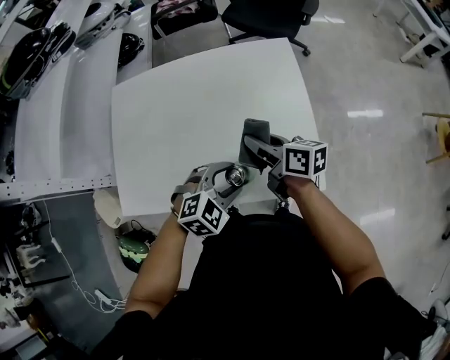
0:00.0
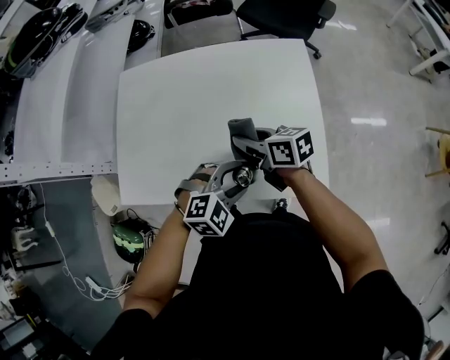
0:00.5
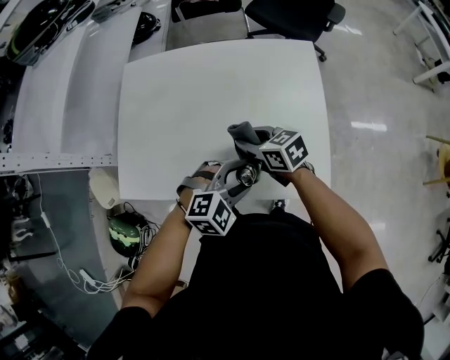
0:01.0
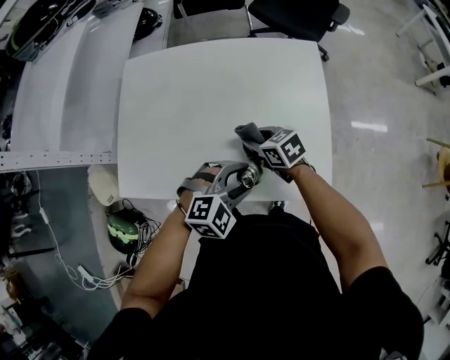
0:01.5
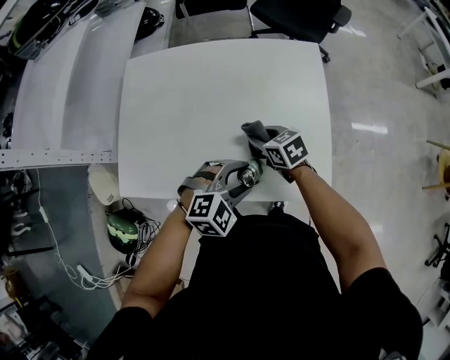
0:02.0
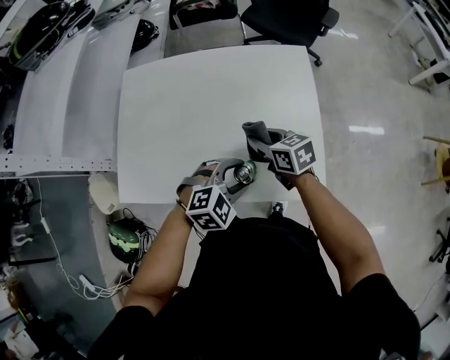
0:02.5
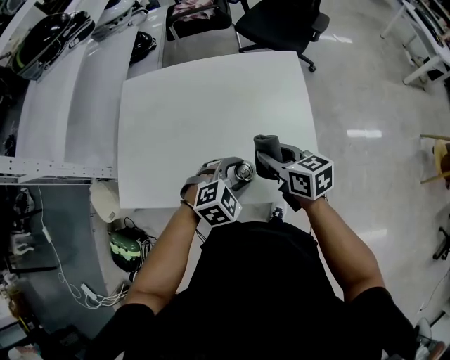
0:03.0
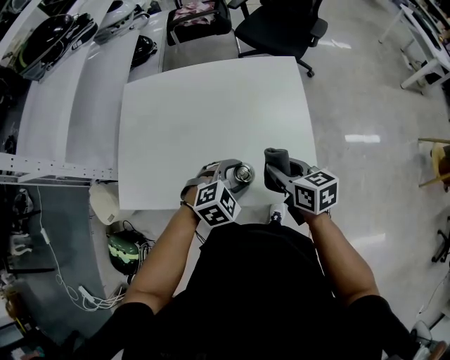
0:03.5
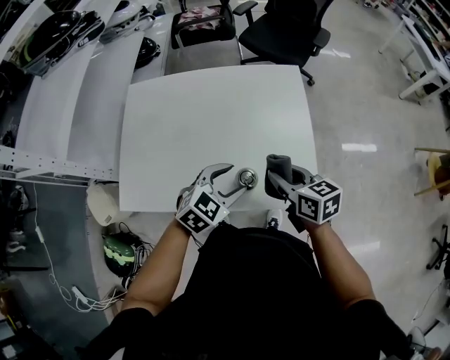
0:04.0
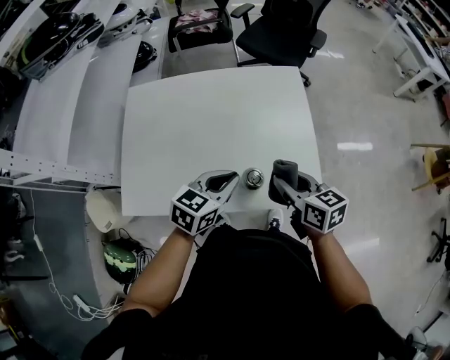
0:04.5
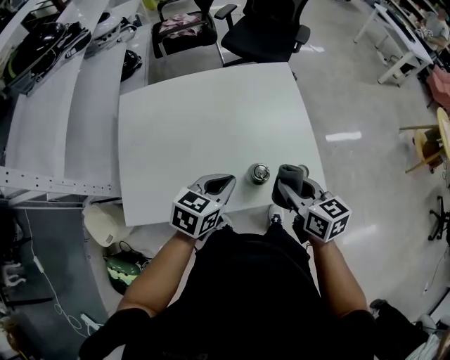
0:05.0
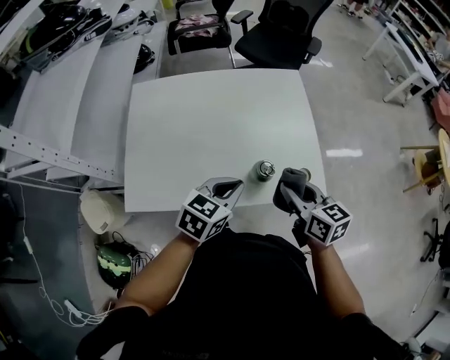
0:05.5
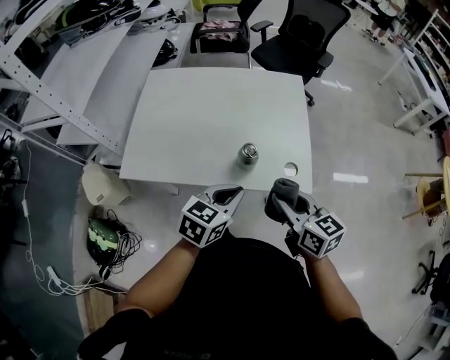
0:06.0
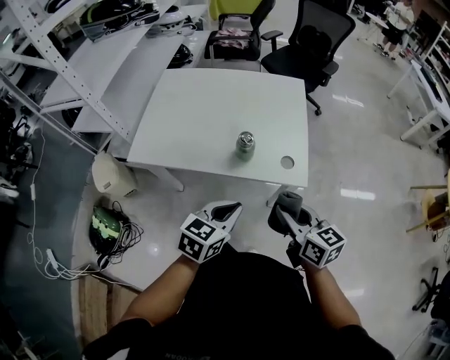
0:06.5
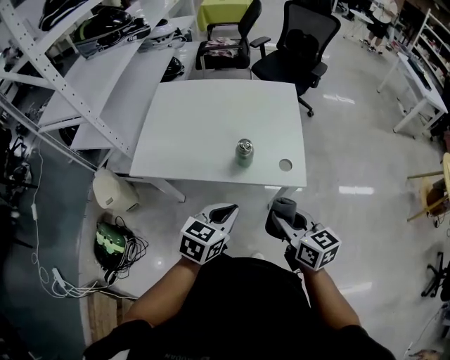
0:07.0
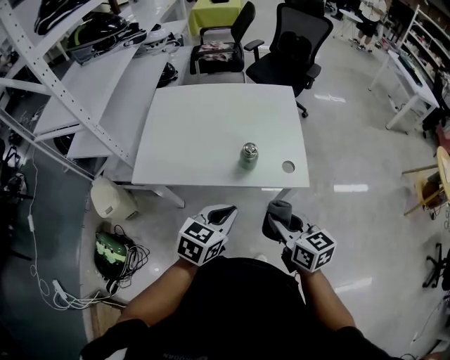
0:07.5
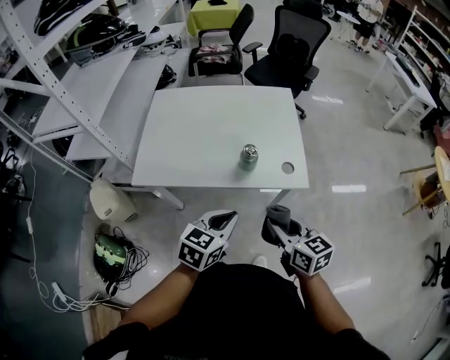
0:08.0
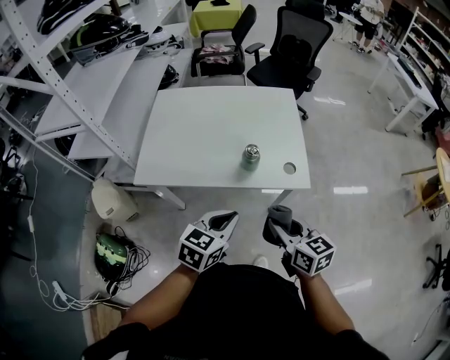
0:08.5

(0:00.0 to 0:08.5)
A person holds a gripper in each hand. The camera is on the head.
0:00.0 - 0:02.0: The right gripper is displaced downward and to the left by about 10 cm, and swivels some 40 degrees.
0:02.0 - 0:04.0: The right gripper shifts some 20 cm upward, to the right and backward, and turns by roughly 20 degrees, while the left gripper turns by some 20 degrees.
0:04.0 - 0:06.5: Both grippers move backward, roughly 25 cm. The left gripper rotates some 30 degrees, and closes up.
0:06.5 - 0:08.5: Both grippers move to the left, roughly 5 cm.

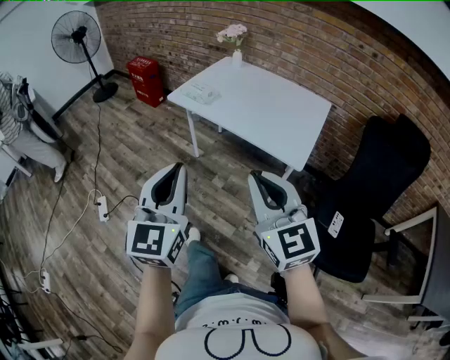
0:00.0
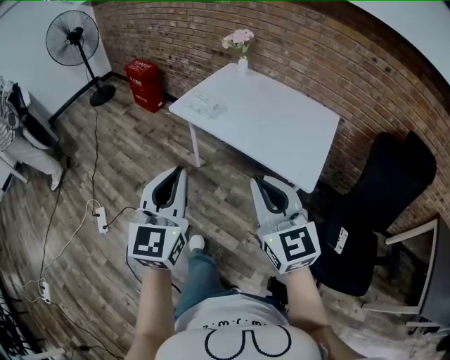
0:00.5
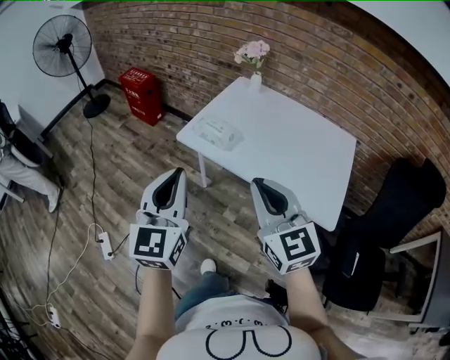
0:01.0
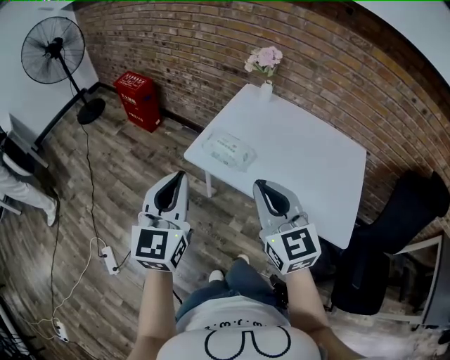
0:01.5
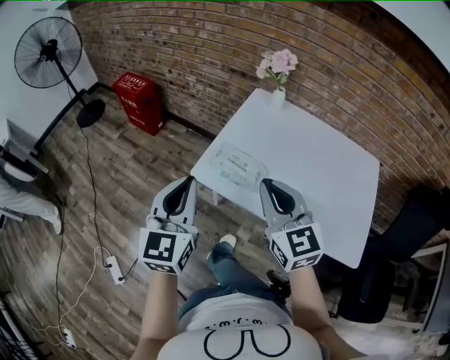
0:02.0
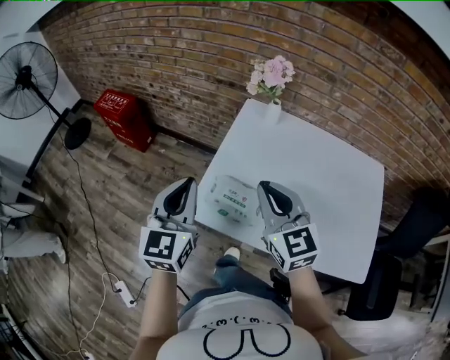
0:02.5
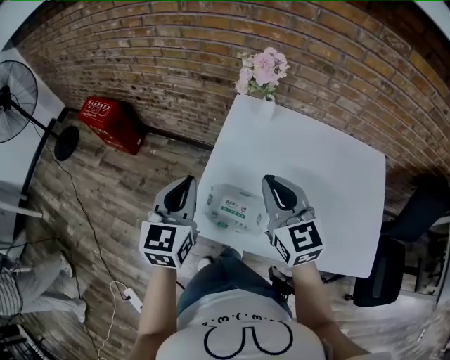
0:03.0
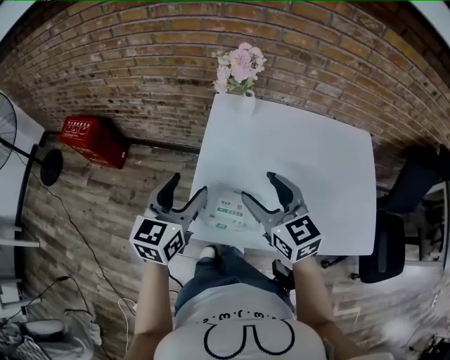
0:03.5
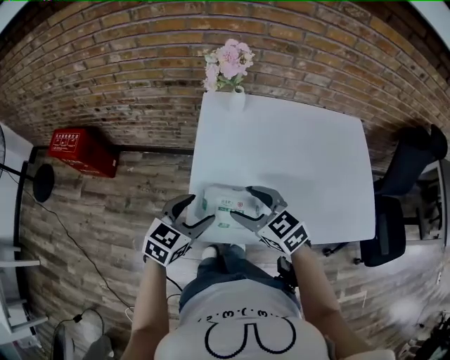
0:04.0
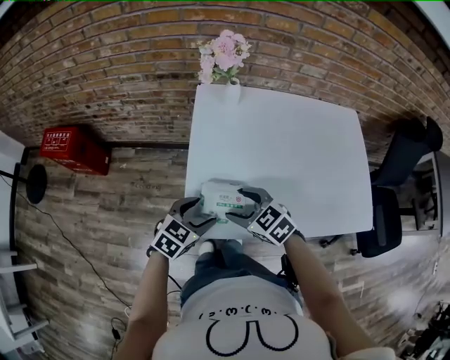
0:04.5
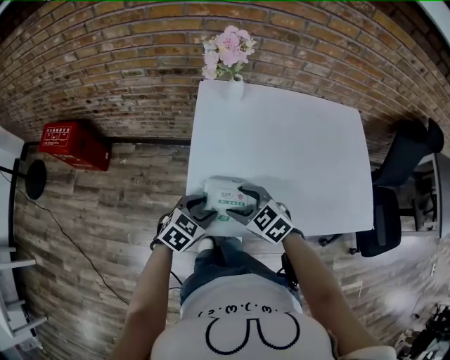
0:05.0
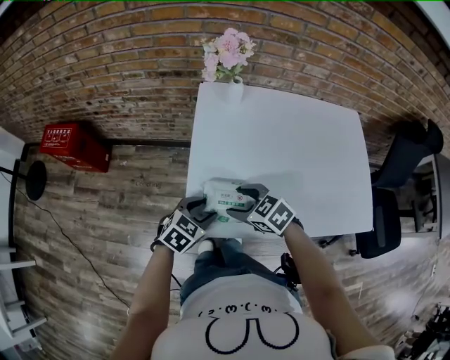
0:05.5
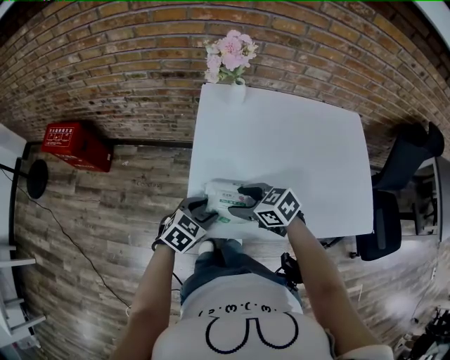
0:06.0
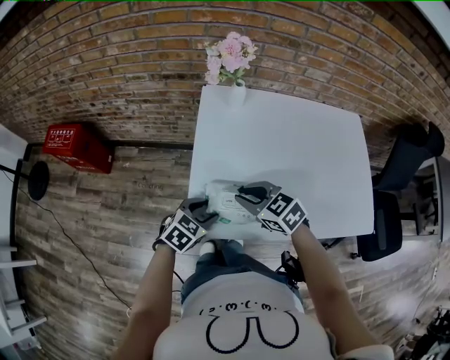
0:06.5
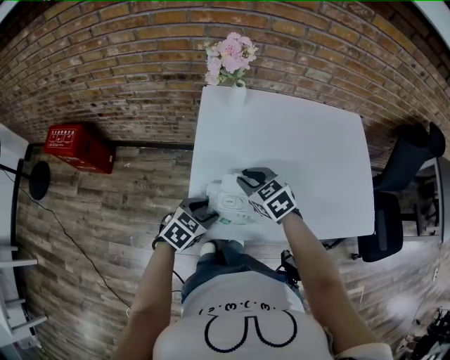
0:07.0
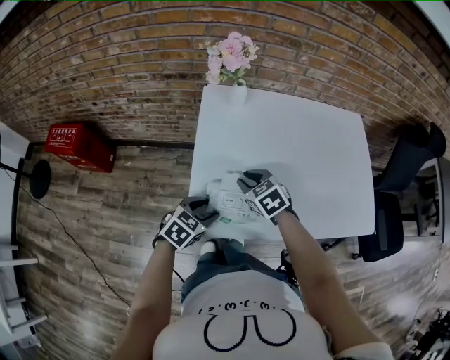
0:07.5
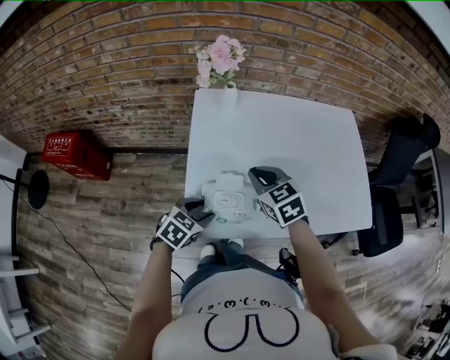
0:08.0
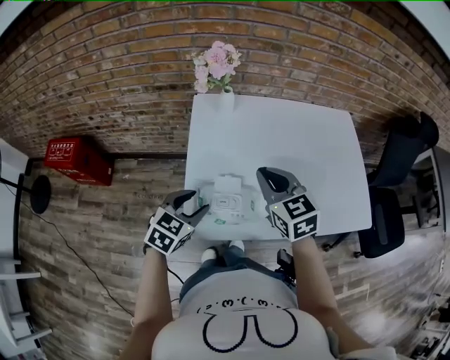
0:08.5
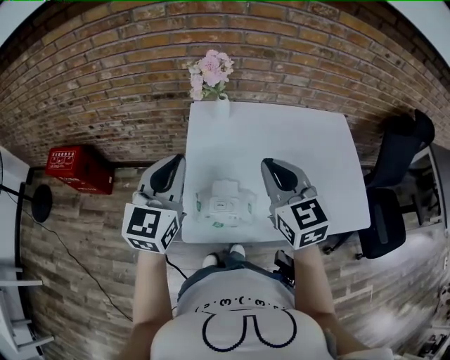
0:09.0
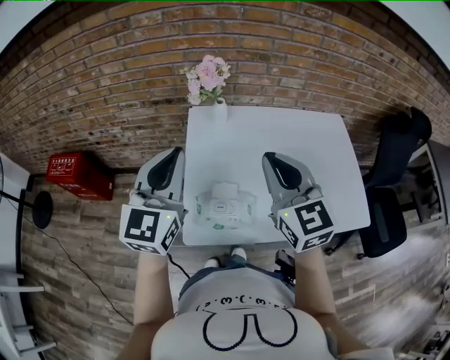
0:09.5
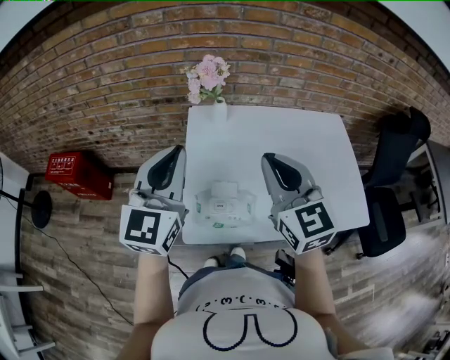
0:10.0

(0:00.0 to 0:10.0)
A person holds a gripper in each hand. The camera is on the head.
0:00.0 - 0:02.0: Both grippers are carried forward, about 60 cm.
0:02.0 - 0:04.0: The left gripper changes place by roughly 25 cm, rotates some 60 degrees, and opens, while the right gripper shifts by approximately 25 cm, swivels about 30 degrees, and opens.
0:04.0 - 0:06.0: Both grippers move downward, about 10 cm. The right gripper changes its angle by approximately 20 degrees.
0:06.0 - 0:08.0: The right gripper moves forward, upward and to the right, about 10 cm, rotates some 30 degrees, and closes up.
0:08.0 - 0:10.0: The left gripper heads upward, covering some 35 cm, tips its fingers upward by approximately 50 degrees, and closes; the right gripper goes some 20 cm upward, and angles its fingers upward, by roughly 30 degrees.

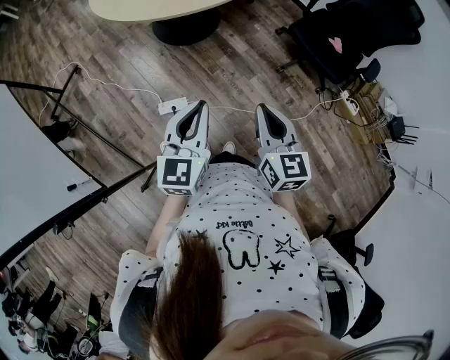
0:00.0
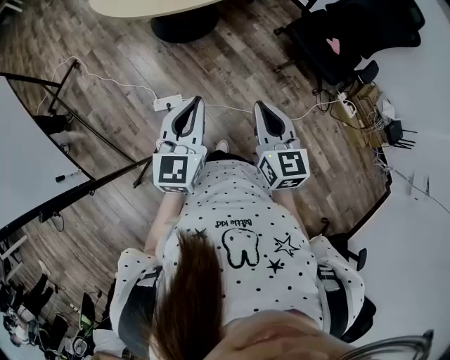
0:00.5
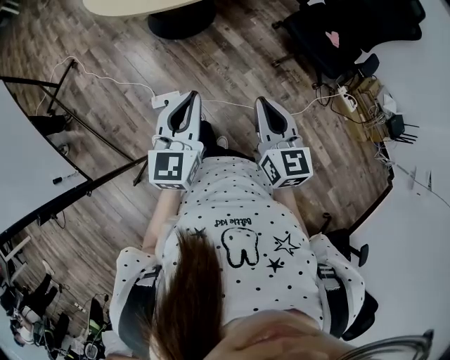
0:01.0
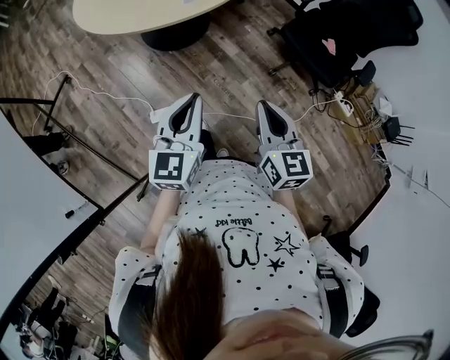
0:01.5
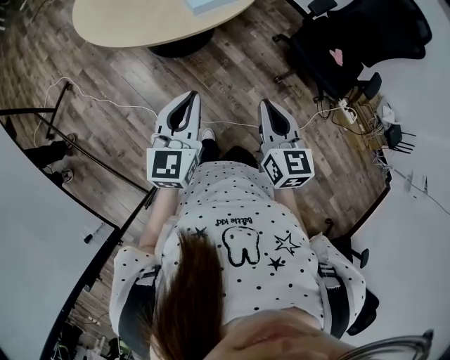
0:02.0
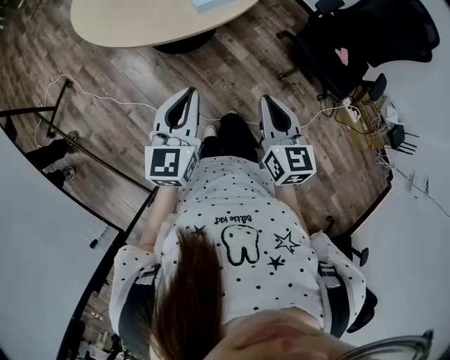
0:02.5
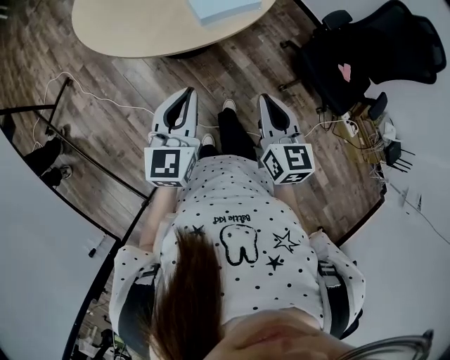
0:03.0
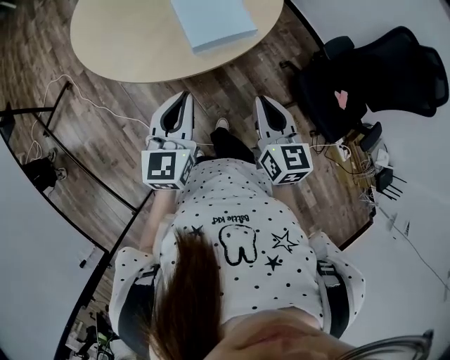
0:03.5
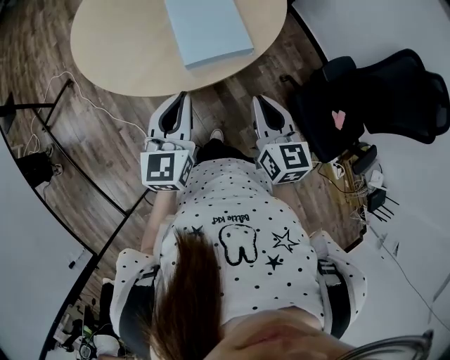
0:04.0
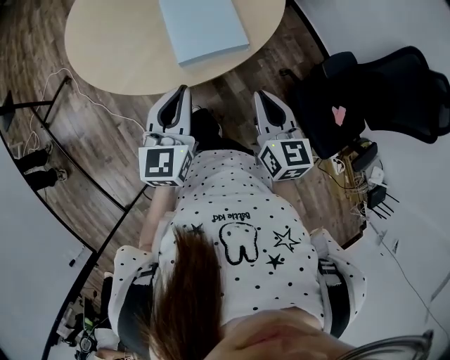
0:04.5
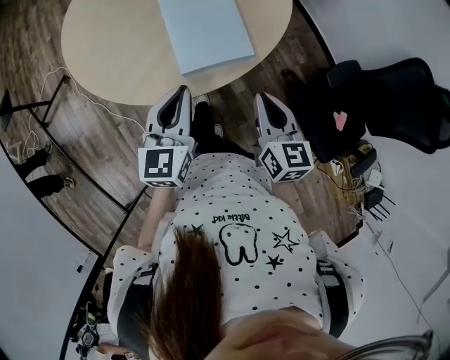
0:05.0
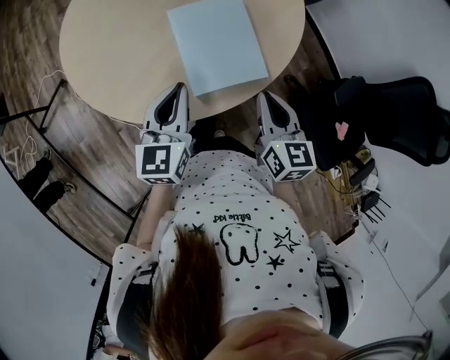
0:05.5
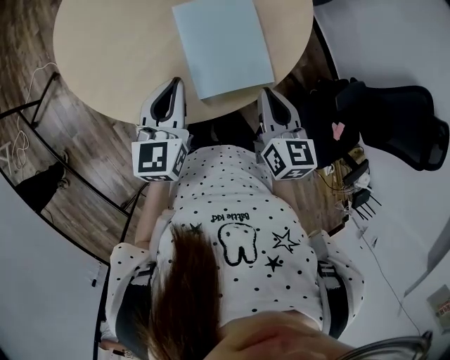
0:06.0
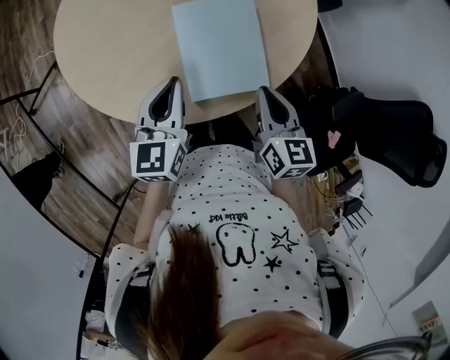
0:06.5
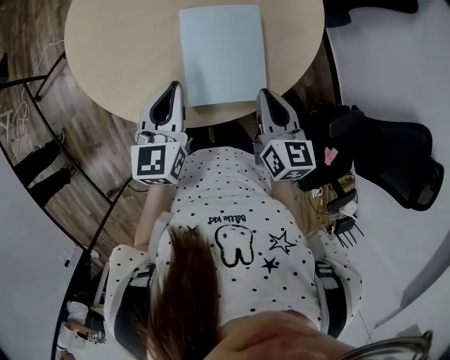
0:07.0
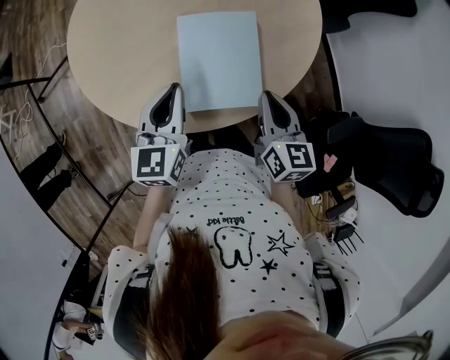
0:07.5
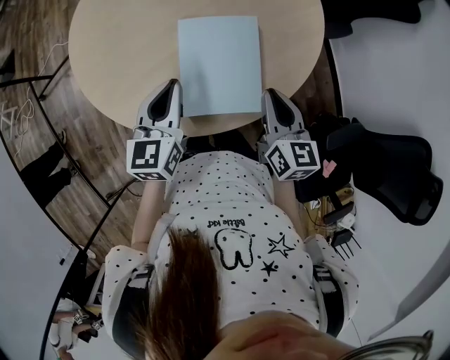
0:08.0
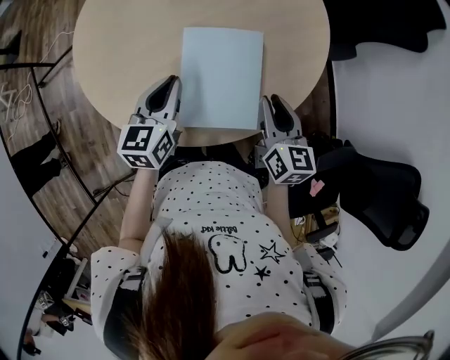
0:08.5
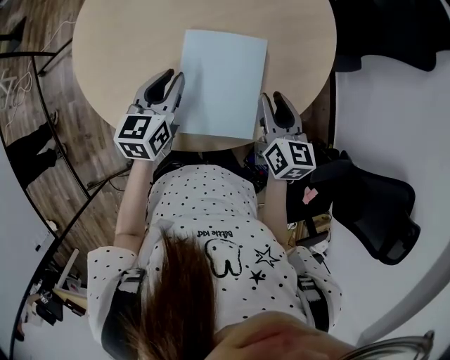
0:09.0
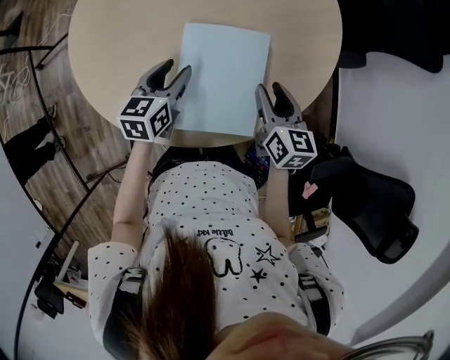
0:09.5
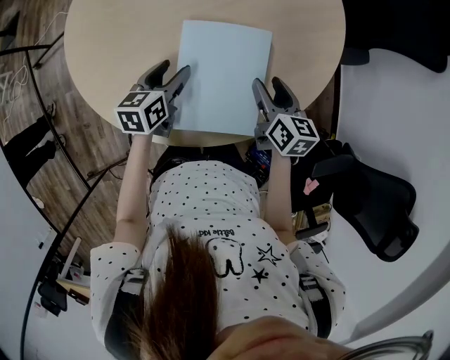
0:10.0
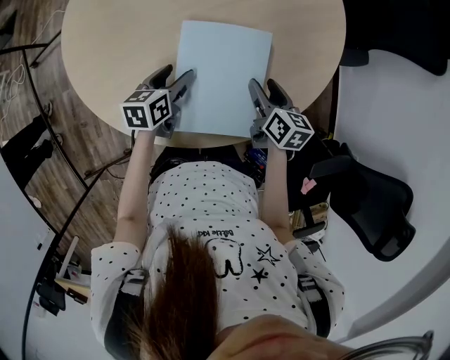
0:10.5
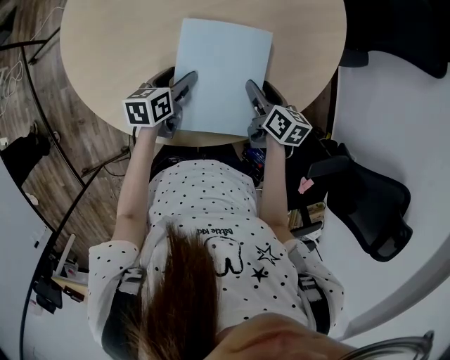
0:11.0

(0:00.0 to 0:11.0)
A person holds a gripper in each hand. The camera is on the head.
0:00.0 - 0:02.0: The two grippers go about 15 cm forward.
0:02.0 - 0:03.5: The two grippers go about 20 cm forward.
0:03.5 - 0:05.5: The two grippers go roughly 20 cm forward.
0:05.5 - 0:07.5: The right gripper travels forward by roughly 10 cm.
0:07.5 - 0:09.0: The left gripper is displaced forward and downward by some 10 cm, while the right gripper moves forward, some 10 cm, and opens its fingers.
0:09.0 - 0:11.0: Both grippers move downward, some 15 cm. The right gripper swivels roughly 30 degrees, and opens its fingers. The left gripper swivels some 30 degrees, and opens its fingers.
